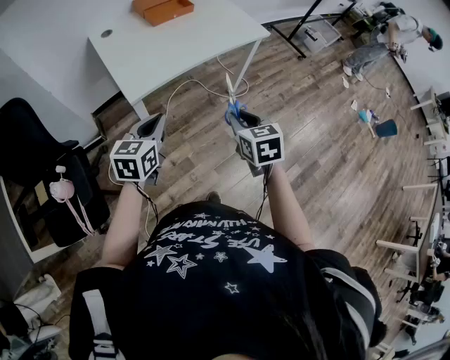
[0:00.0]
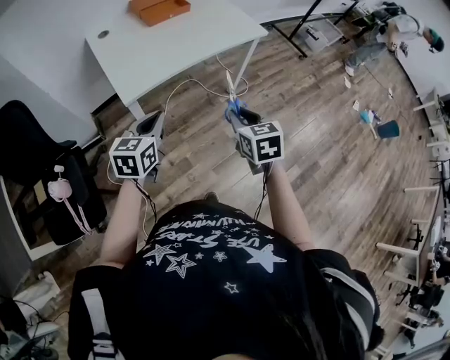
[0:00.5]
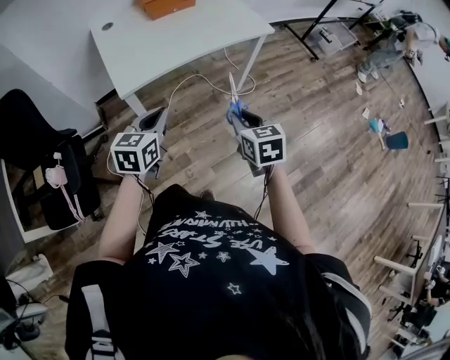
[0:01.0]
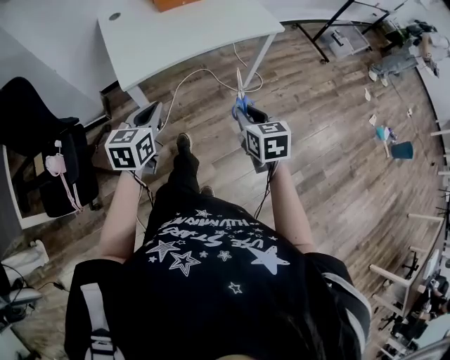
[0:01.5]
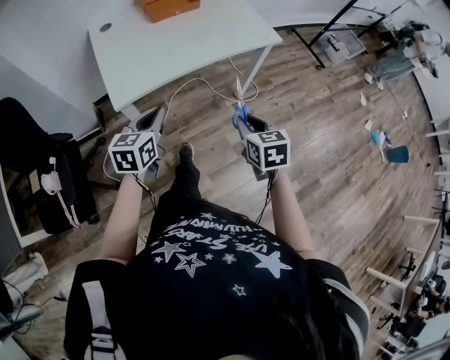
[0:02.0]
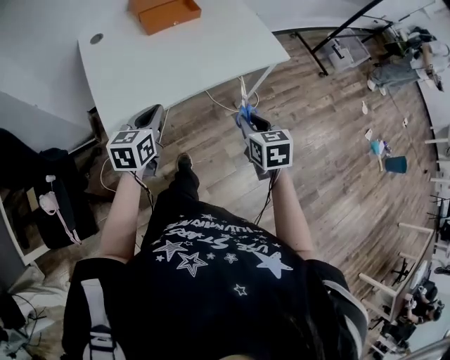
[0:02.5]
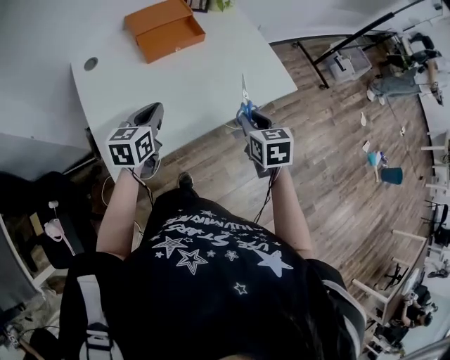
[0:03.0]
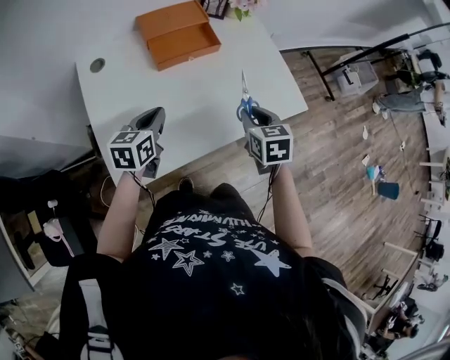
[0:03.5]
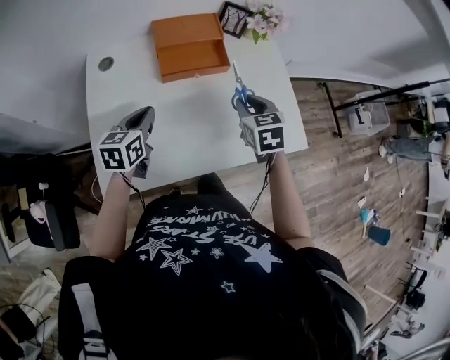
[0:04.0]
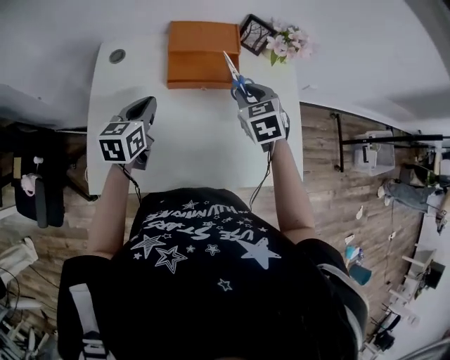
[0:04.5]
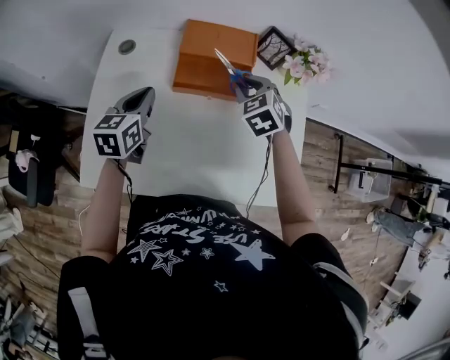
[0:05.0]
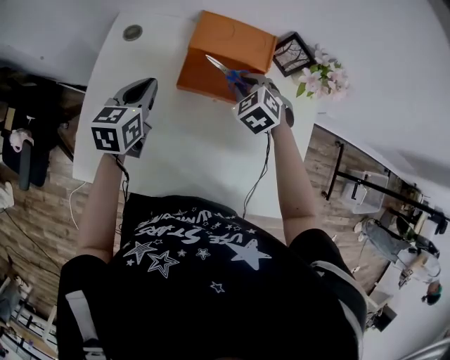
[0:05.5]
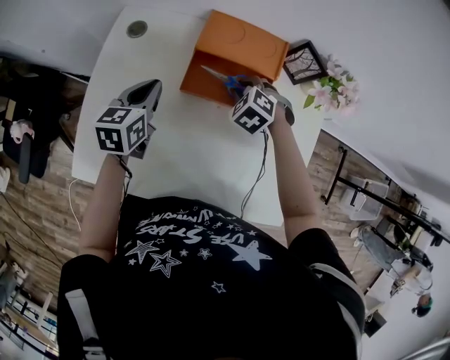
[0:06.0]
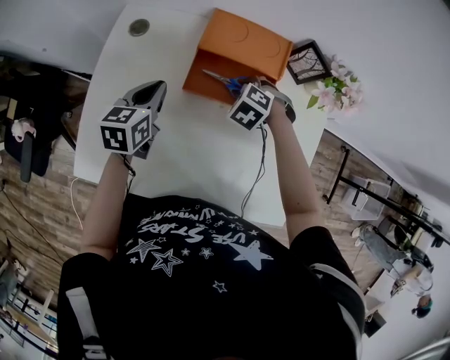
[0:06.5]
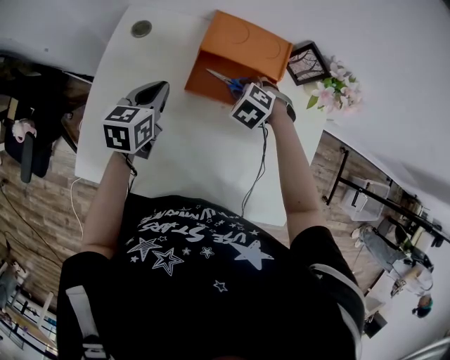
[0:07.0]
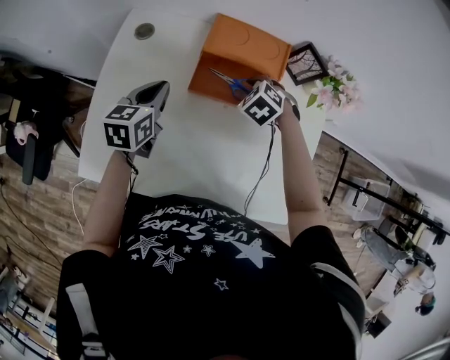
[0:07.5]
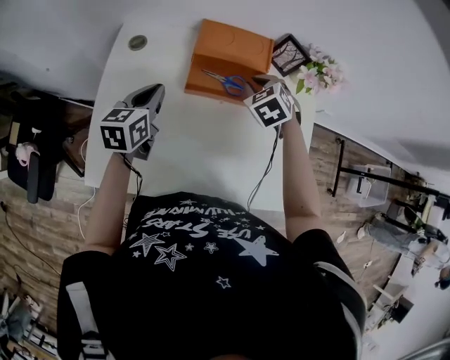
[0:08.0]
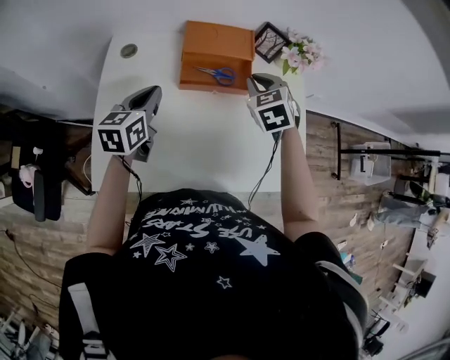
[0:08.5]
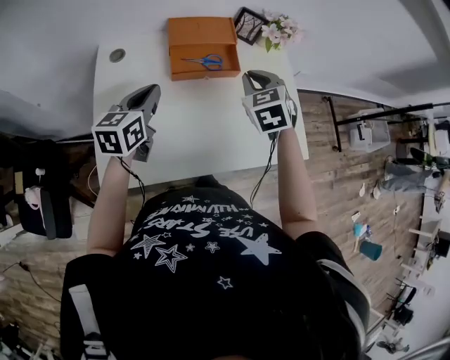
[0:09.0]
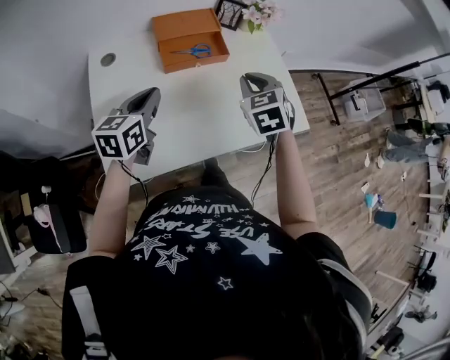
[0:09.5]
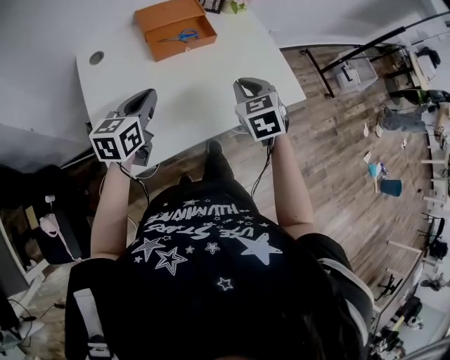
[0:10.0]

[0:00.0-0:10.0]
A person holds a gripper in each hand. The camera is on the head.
0:00.0 to 0:02.0: The right gripper moves to the right, forward and downward, some 15 cm, while the left gripper shifts roughly 15 cm forward and to the right.
0:02.0 to 0:04.0: The two grippers travel together, forward, about 50 cm. The right gripper changes its angle by approximately 20 degrees.
0:04.0 to 0:06.0: The left gripper travels forward by about 15 cm, and swivels some 20 degrees. Meanwhile the right gripper heads forward and downward, covering about 25 cm, and rotates around the line of its fingers by approximately 60 degrees, counterclockwise from behind.
0:06.0 to 0:08.0: The right gripper moves upward, about 10 cm, and swivels some 20 degrees.
0:08.0 to 0:10.0: The left gripper changes place by some 20 cm, and rotates roughly 30 degrees. The right gripper ends up roughly 35 cm from where it was, and changes its angle by some 40 degrees.

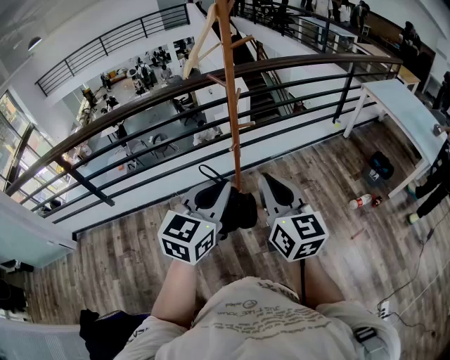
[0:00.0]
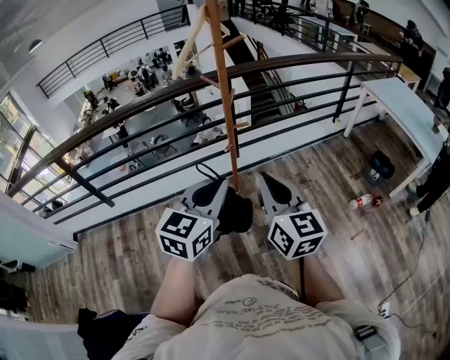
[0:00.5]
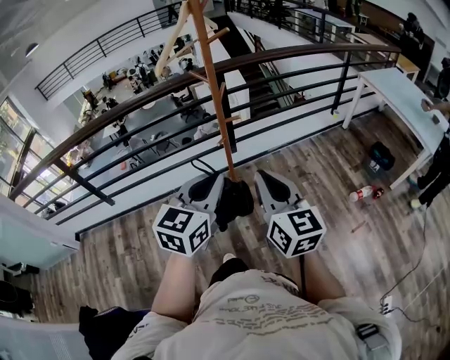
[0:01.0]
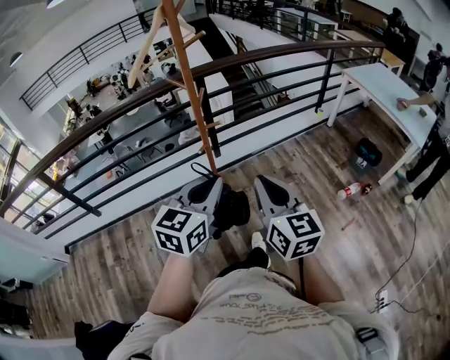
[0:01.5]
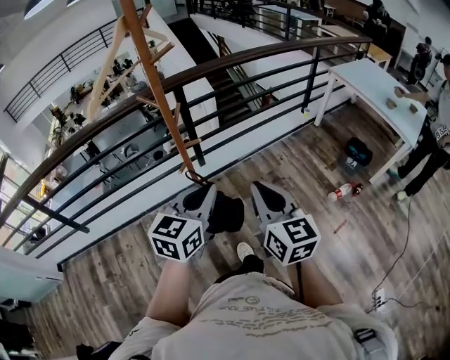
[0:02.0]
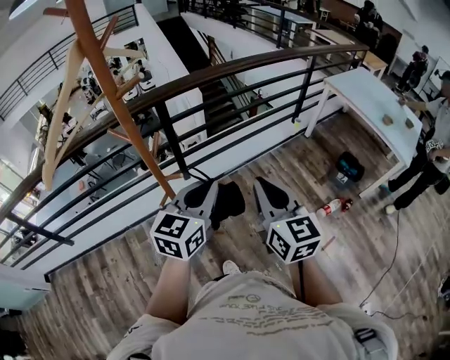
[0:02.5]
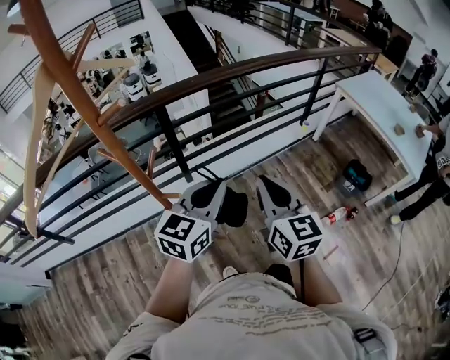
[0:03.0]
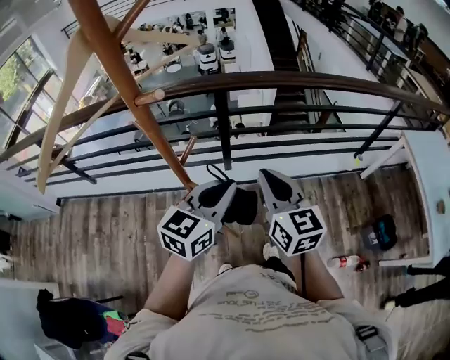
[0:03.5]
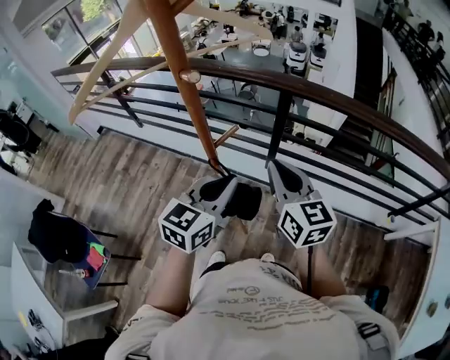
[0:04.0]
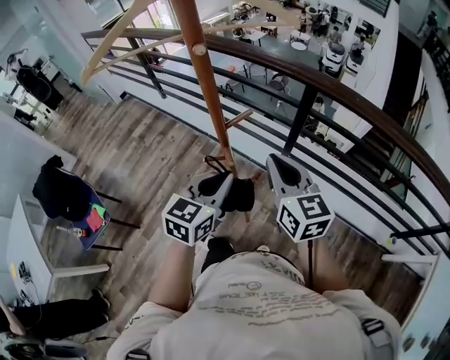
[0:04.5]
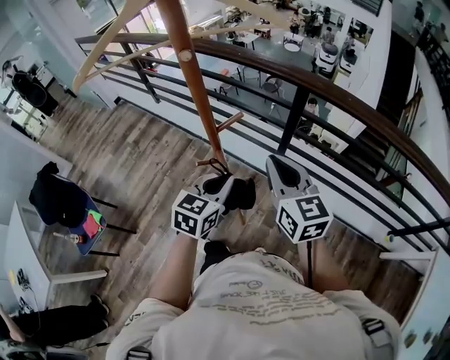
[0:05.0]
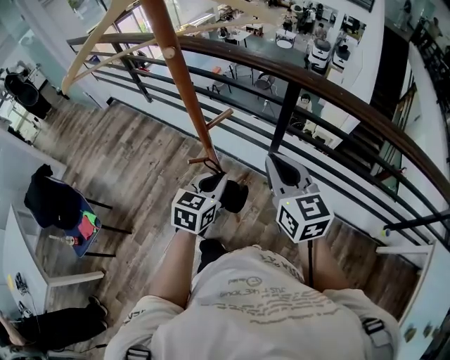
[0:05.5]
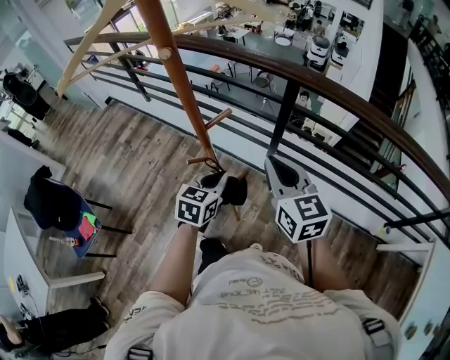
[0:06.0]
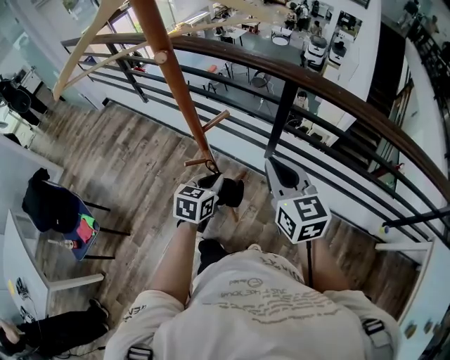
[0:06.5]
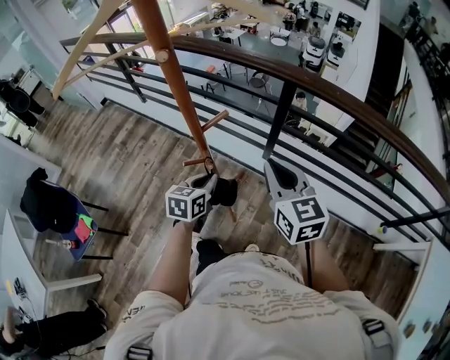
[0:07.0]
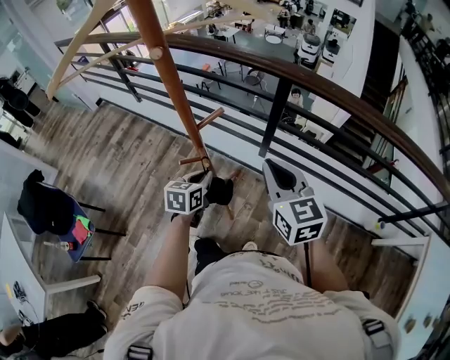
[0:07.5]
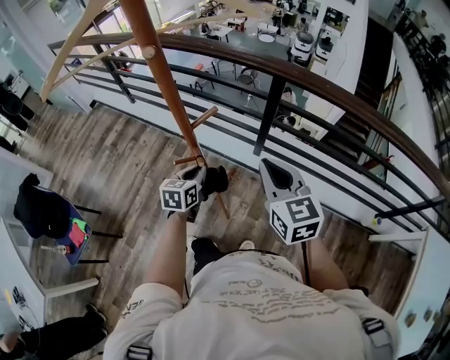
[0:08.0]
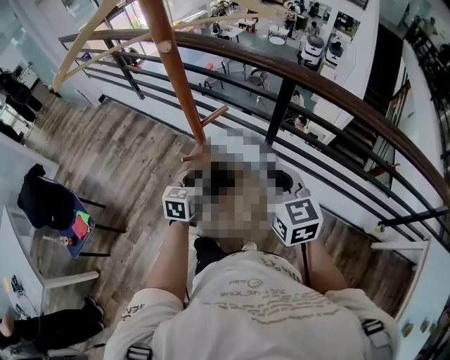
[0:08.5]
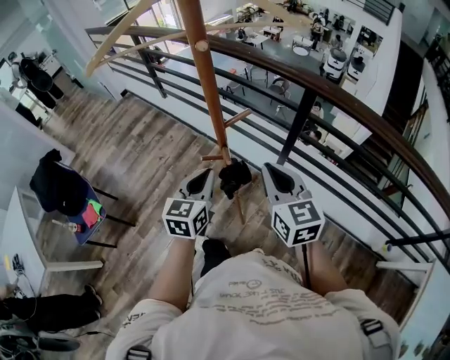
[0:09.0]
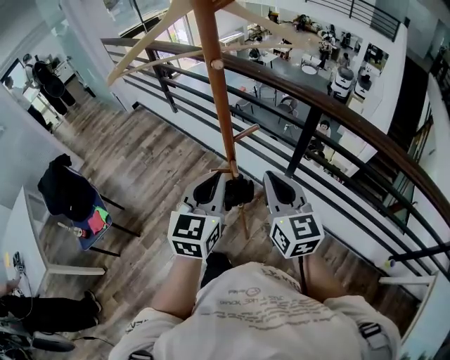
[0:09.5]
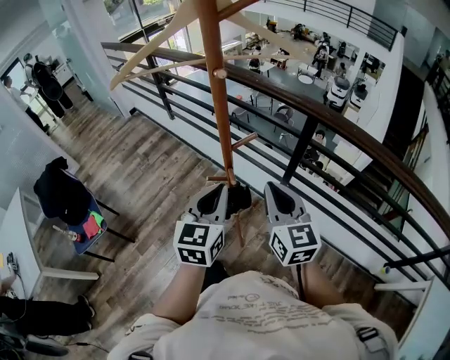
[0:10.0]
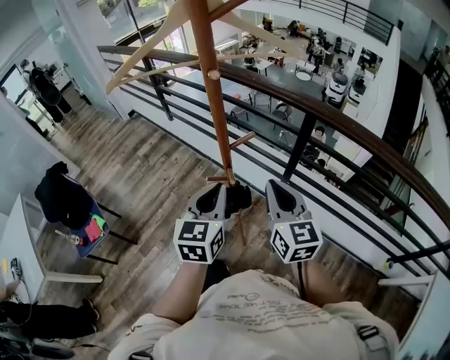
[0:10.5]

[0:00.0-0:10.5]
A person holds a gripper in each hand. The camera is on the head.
0:00.0 to 0:02.0: The right gripper goes roughly 20 cm to the right and forward; the left gripper goes some 20 cm forward and to the right.
0:02.0 to 0:04.0: The right gripper changes place by approximately 40 cm, and rotates roughly 50 degrees; the left gripper changes place by some 25 cm, and turns by about 40 degrees.
0:04.0 to 0:06.5: The right gripper changes place by roughly 5 cm, while the left gripper is displaced downward by about 20 cm, and changes its angle by some 30 degrees.
0:06.5 to 0:08.5: The grippers move only a little.
0:08.5 to 0:10.5: The left gripper heads upward, covering some 20 cm.

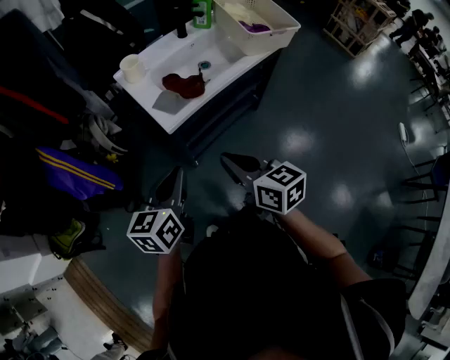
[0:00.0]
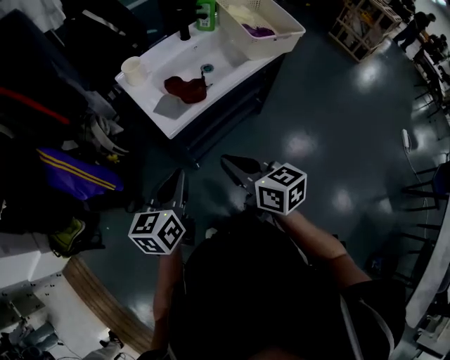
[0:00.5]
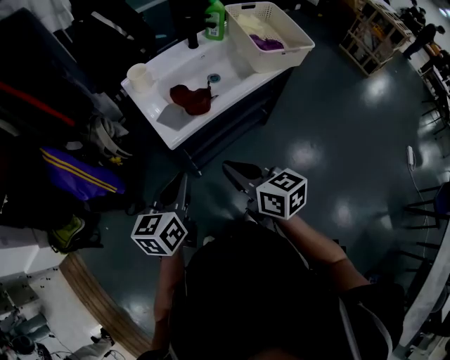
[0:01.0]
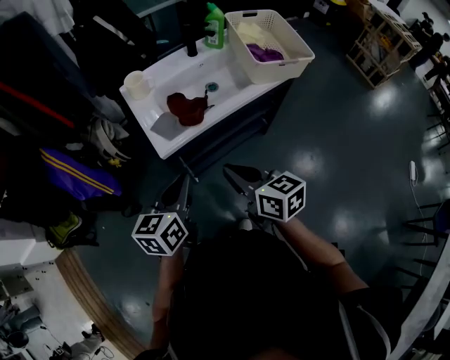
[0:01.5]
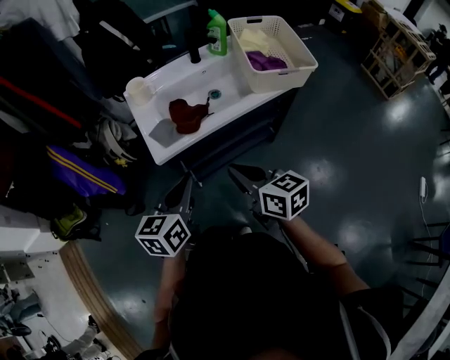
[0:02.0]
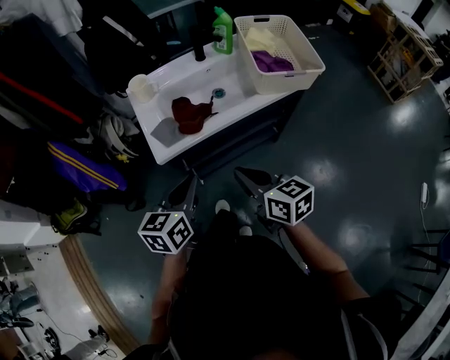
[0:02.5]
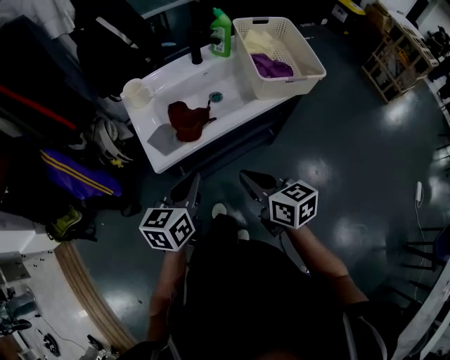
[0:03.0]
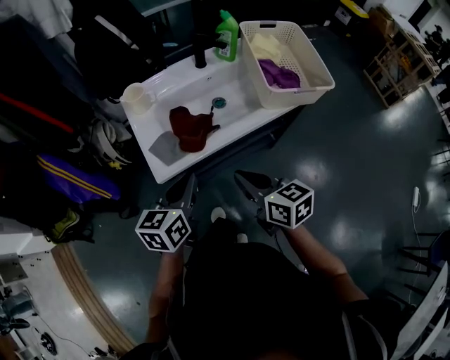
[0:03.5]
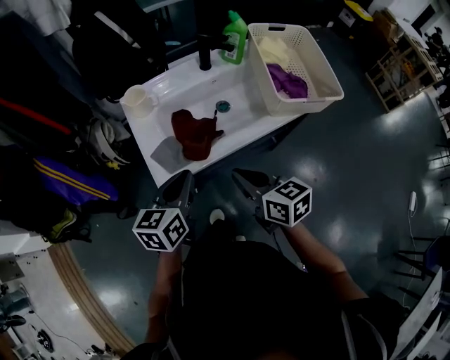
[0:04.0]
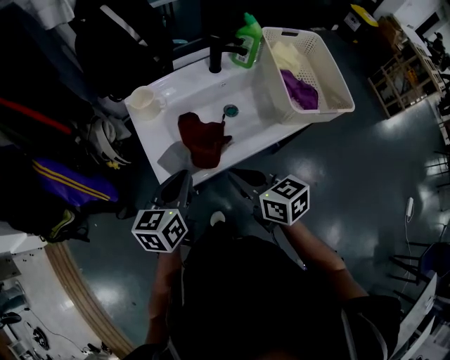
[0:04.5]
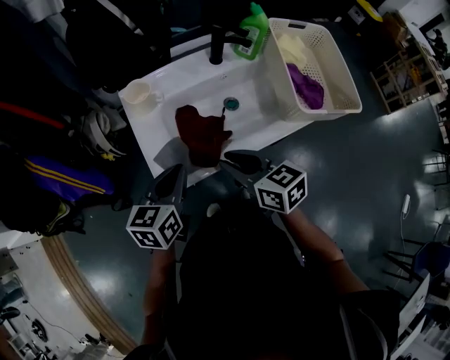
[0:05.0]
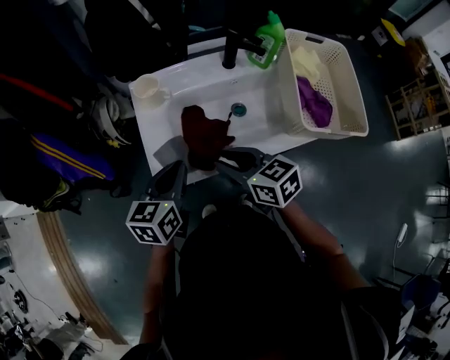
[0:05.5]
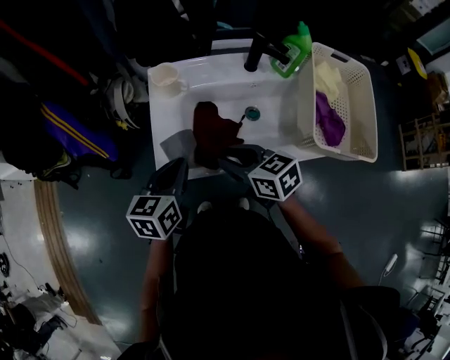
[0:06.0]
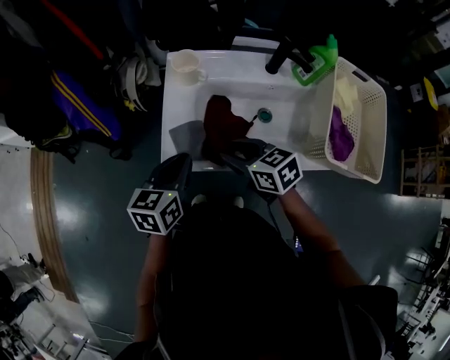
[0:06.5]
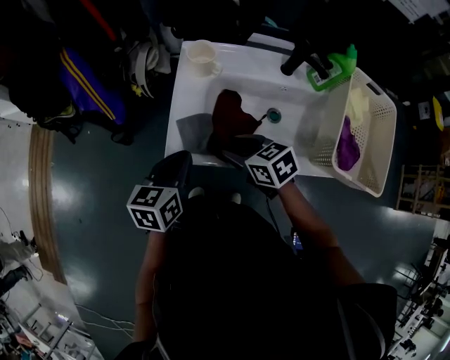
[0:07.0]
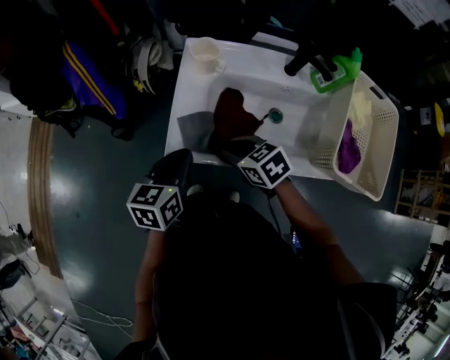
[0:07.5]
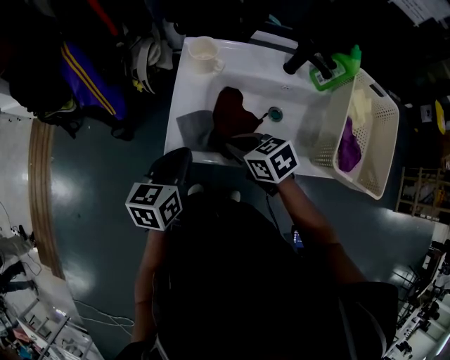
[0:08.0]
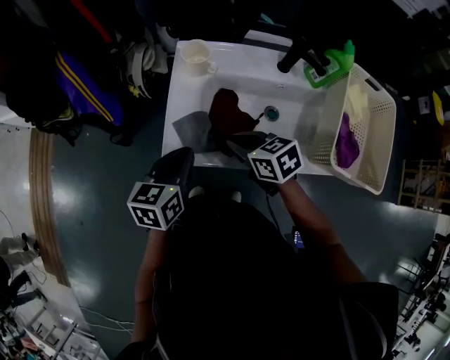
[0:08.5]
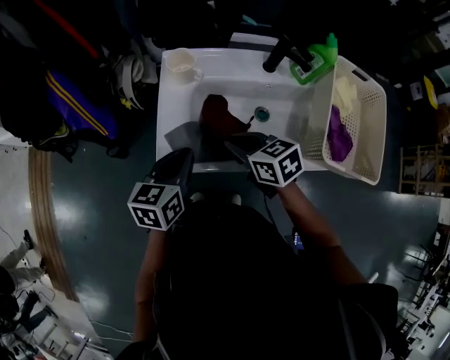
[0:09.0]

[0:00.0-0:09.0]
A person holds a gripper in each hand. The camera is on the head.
0:00.0 to 0:02.0: Both grippers move to the right and forward, about 15 cm.
0:02.0 to 0:04.5: Both grippers move forward, some 15 cm.
0:04.5 to 0:07.0: The right gripper moves some 15 cm, rotates approximately 40 degrees, and opens its fingers. Meanwhile the left gripper ends up about 5 cm from where it was, and changes its angle by some 30 degrees.
0:07.0 to 0:09.0: The right gripper closes its fingers.
